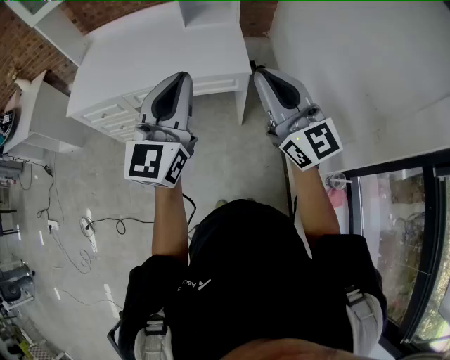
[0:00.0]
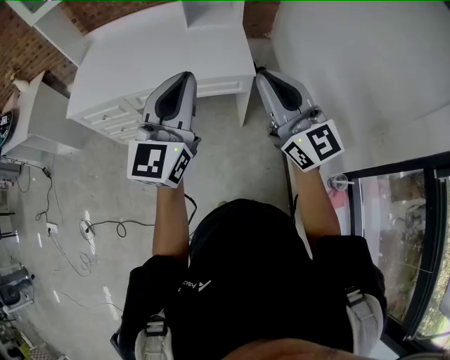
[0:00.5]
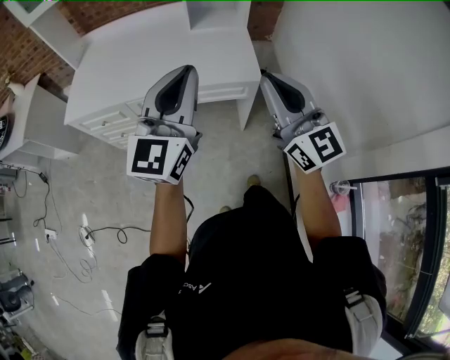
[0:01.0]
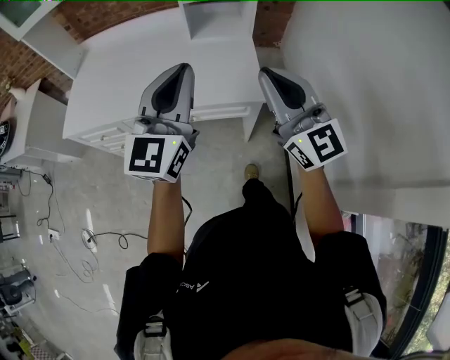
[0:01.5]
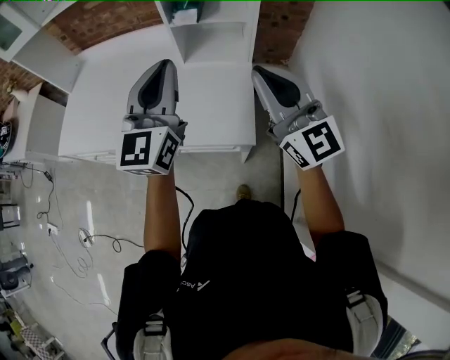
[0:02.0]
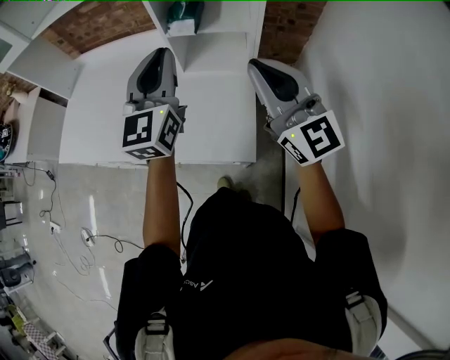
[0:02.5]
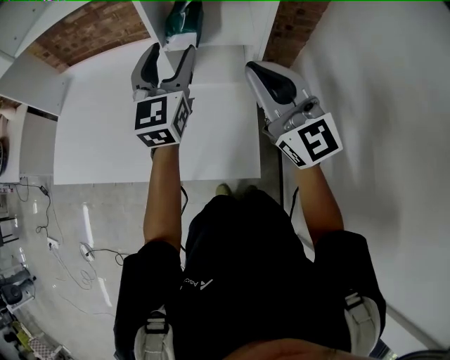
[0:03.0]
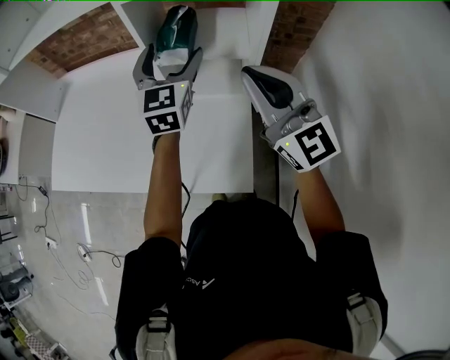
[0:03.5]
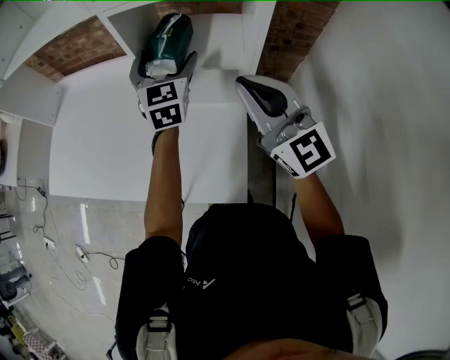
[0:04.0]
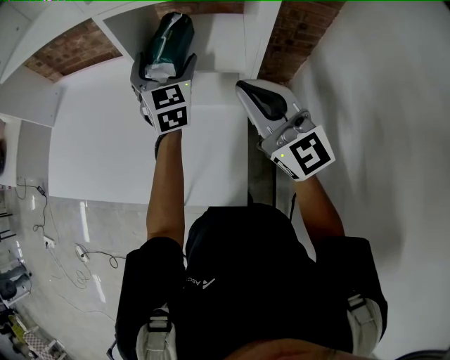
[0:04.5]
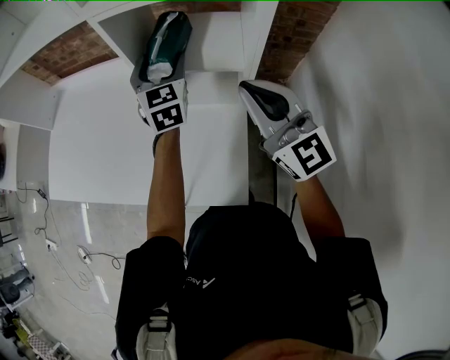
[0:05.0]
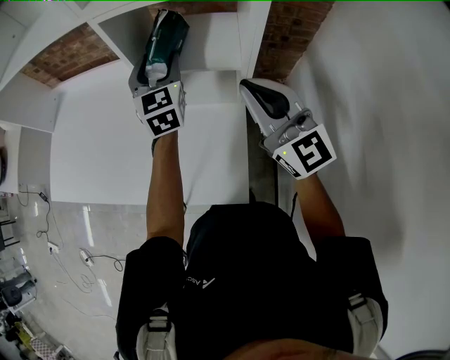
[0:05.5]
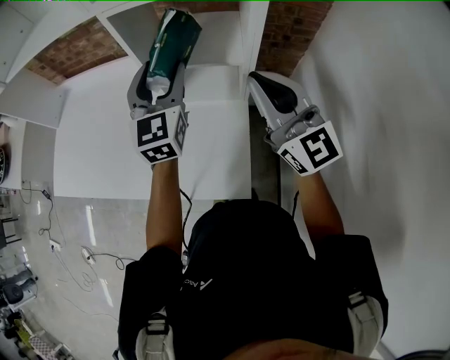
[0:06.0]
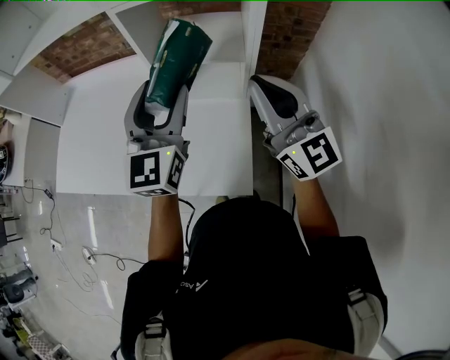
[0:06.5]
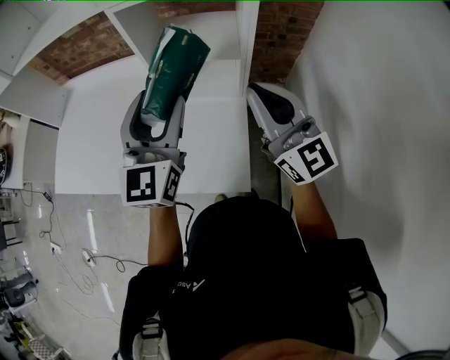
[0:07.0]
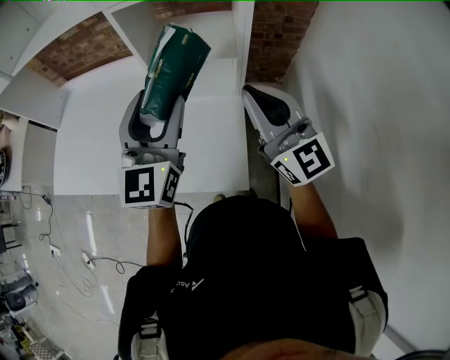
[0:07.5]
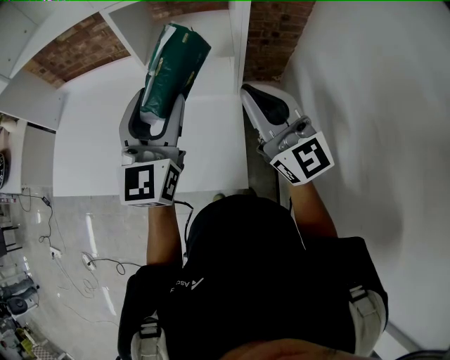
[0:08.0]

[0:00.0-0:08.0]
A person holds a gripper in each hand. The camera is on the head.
0:00.0 to 0:02.0: The grippers both shift forward by about 35 cm.
0:02.0 to 0:04.0: The right gripper goes about 20 cm forward; the left gripper is displaced forward by some 30 cm, changes its angle by some 30 degrees, and opens.
0:04.0 to 0:06.0: The left gripper goes roughly 5 cm backward, and closes.
0:06.0 to 0:08.0: The left gripper moves backward, approximately 15 cm; the right gripper shifts approximately 5 cm backward.

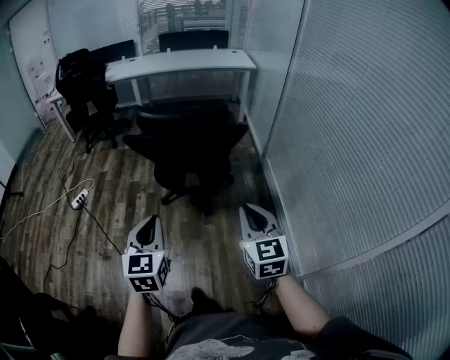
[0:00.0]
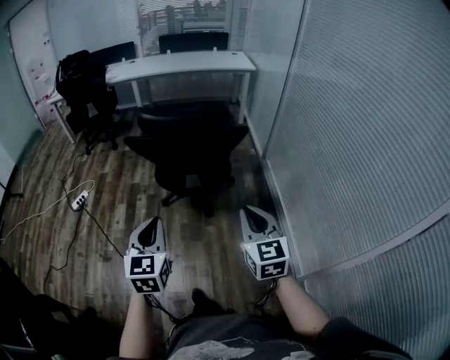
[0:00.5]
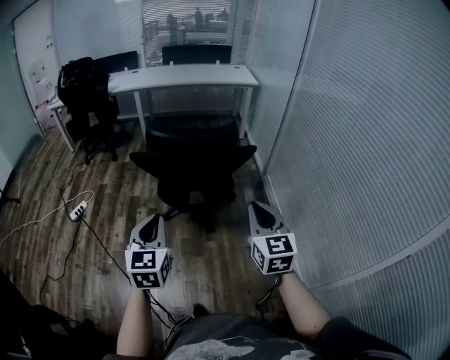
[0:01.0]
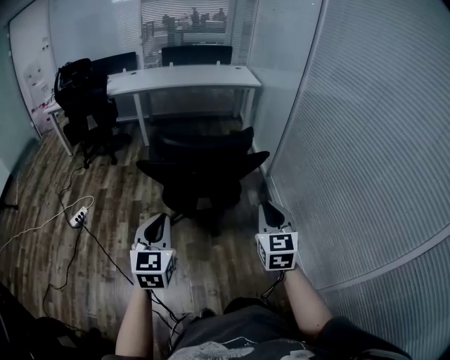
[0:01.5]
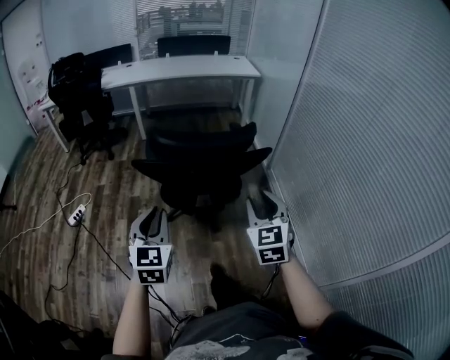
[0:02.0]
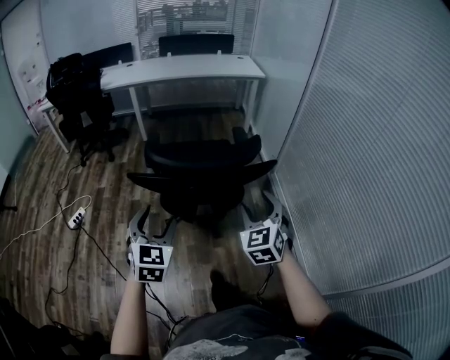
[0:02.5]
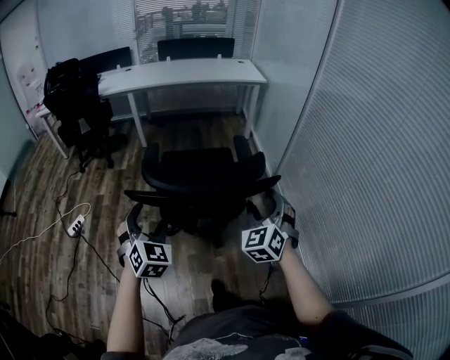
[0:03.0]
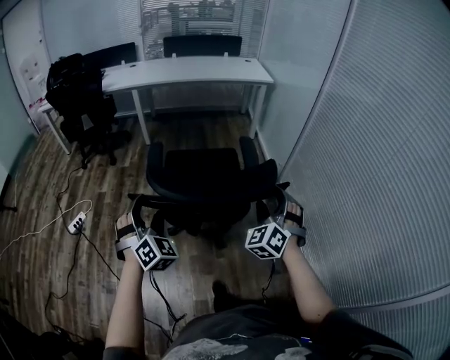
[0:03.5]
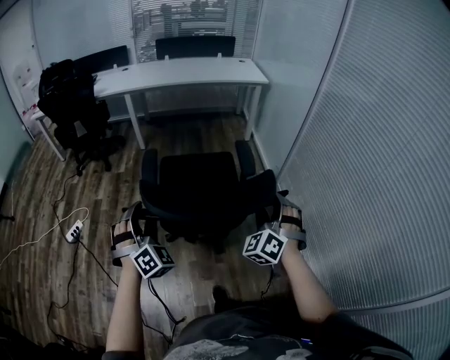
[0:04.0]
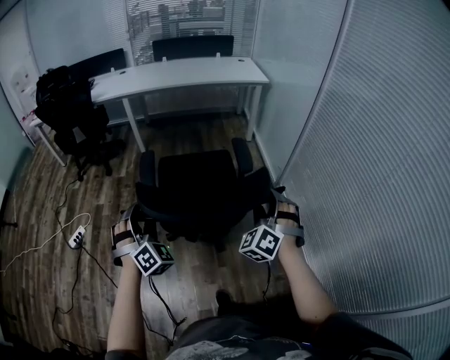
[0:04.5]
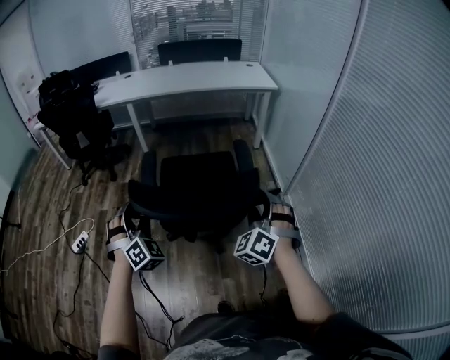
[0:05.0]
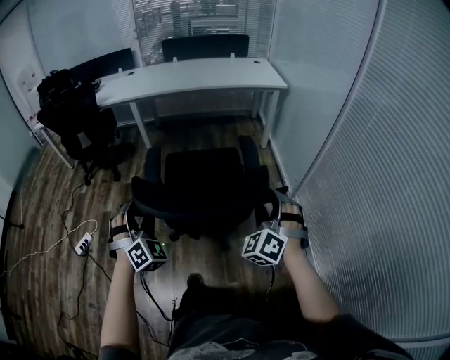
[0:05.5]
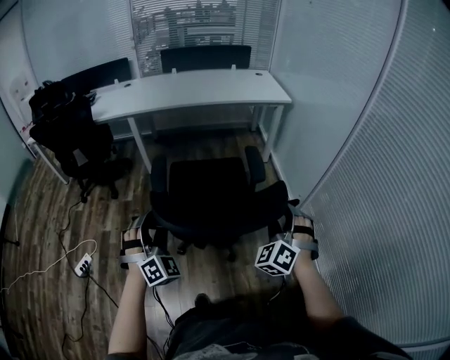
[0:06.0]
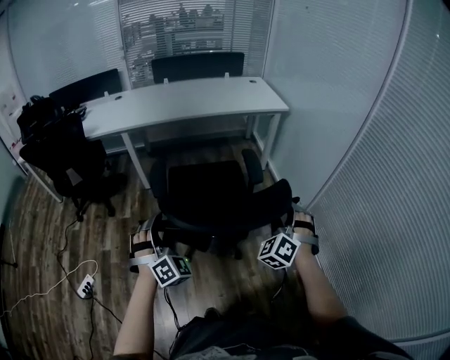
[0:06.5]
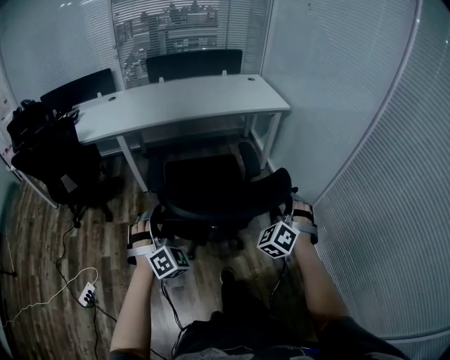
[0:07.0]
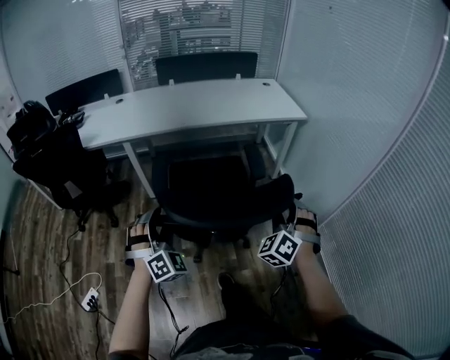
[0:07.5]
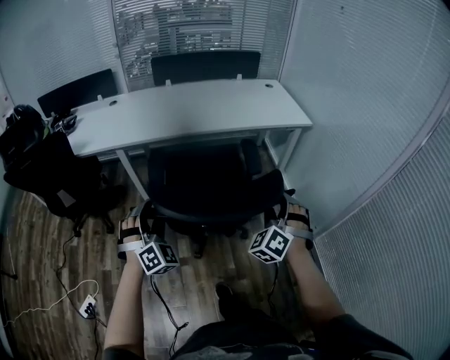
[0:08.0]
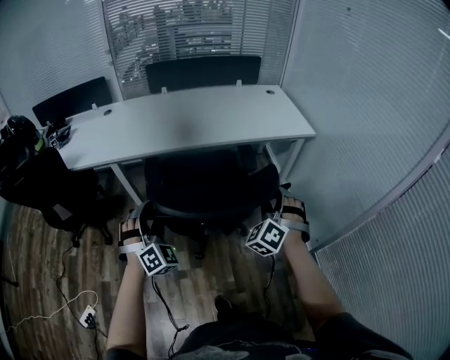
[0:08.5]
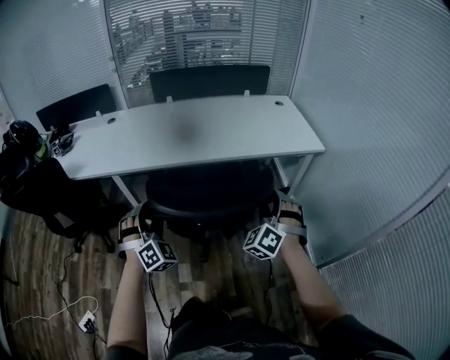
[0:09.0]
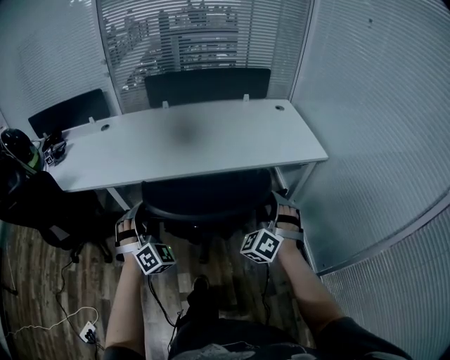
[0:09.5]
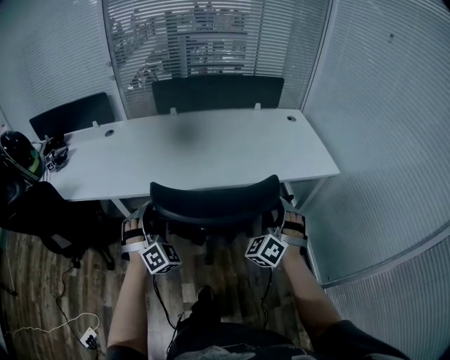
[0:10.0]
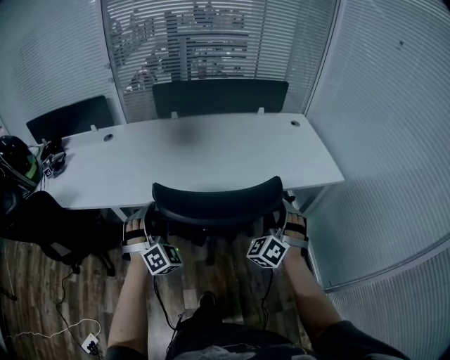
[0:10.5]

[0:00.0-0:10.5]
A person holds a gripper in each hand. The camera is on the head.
0:00.0 to 0:02.0: The left gripper shifts roughly 15 cm forward and to the left; the right gripper goes about 15 cm forward, and opens up.
0:02.0 to 0:04.0: The two grippers go about 20 cm forward. The right gripper twists approximately 40 degrees counterclockwise, seen from behind, and opens up; the left gripper twists some 50 degrees clockwise, seen from behind, and opens up.
0:04.0 to 0:06.5: The grippers both shift forward by about 35 cm.
0:06.5 to 0:08.5: The two grippers go approximately 40 cm forward.
0:08.5 to 0:10.5: The grippers both shift forward by some 25 cm.

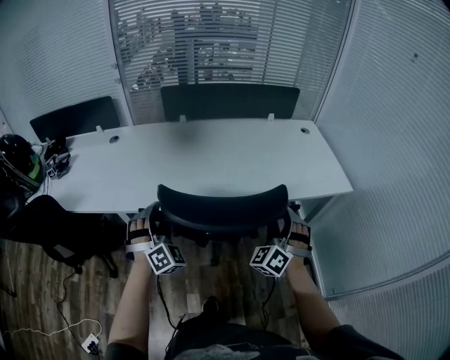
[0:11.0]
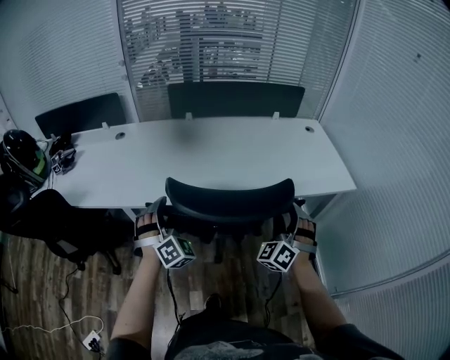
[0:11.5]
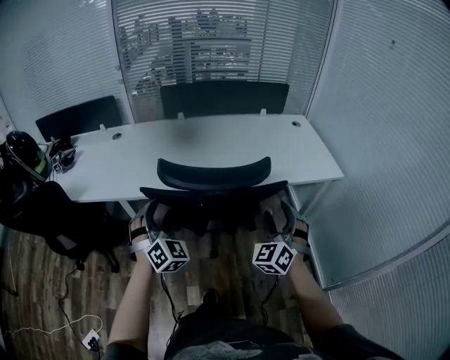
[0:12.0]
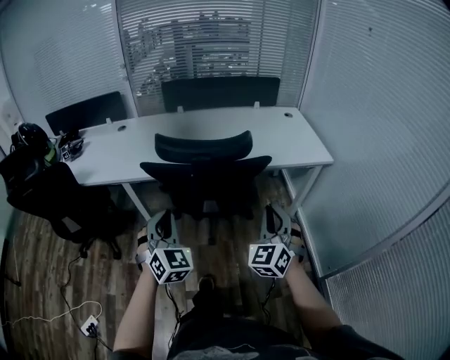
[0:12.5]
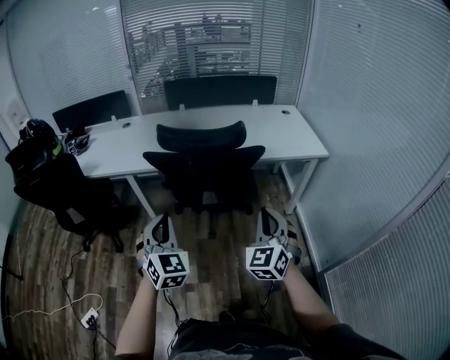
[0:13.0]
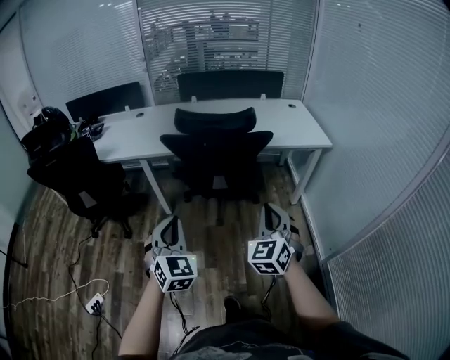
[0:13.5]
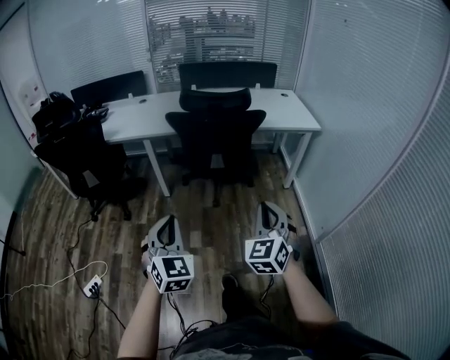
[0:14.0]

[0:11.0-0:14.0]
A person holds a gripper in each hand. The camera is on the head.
0:11.0 to 0:12.5: The two grippers go approximately 25 cm backward. The left gripper swivels roughly 30 degrees, and closes, while the right gripper rotates roughly 30 degrees, and closes.
0:12.5 to 0:14.0: The two grippers go approximately 35 cm backward.

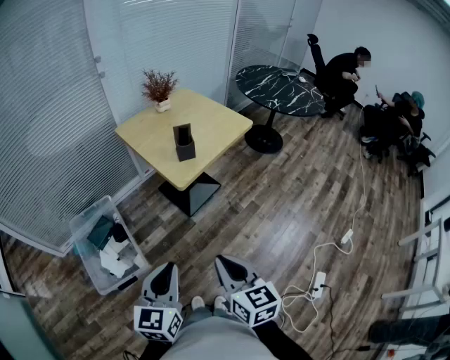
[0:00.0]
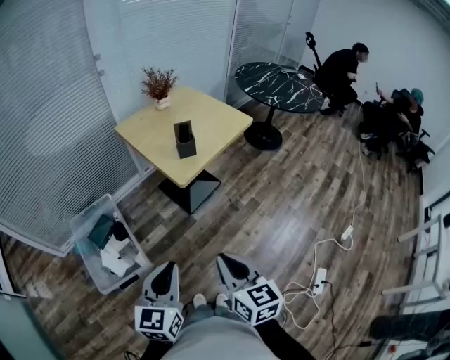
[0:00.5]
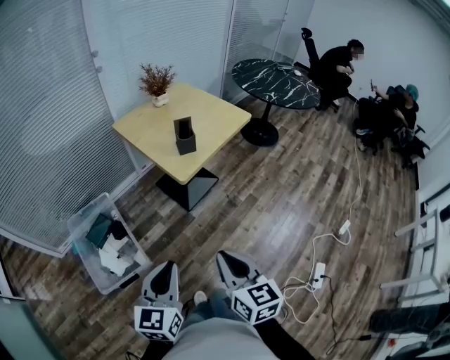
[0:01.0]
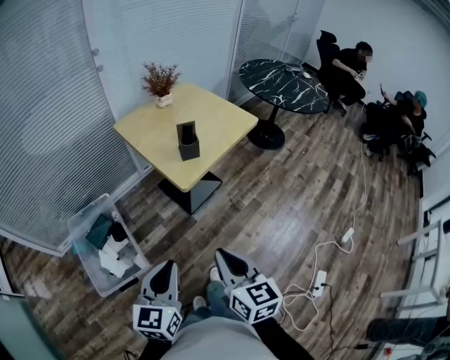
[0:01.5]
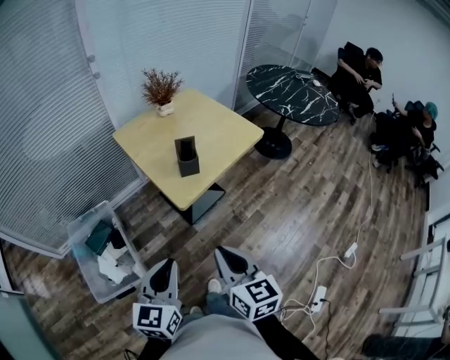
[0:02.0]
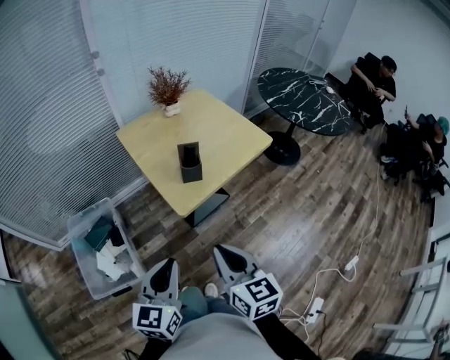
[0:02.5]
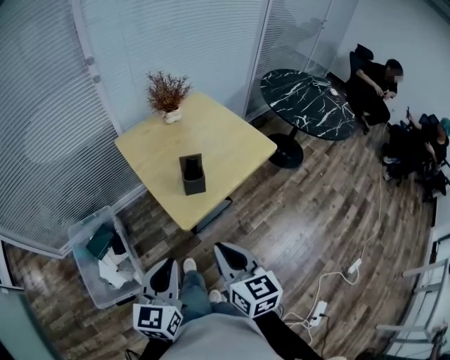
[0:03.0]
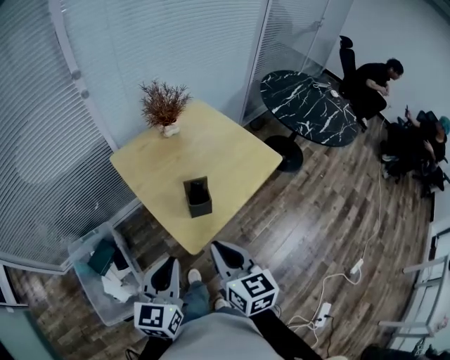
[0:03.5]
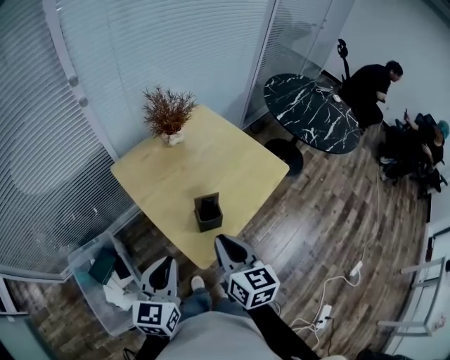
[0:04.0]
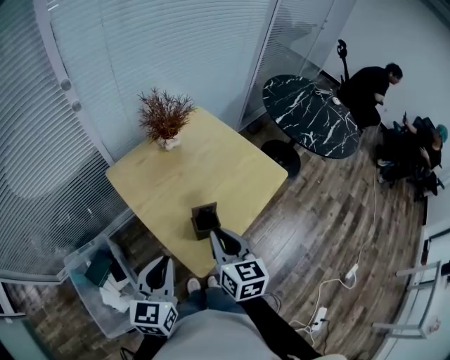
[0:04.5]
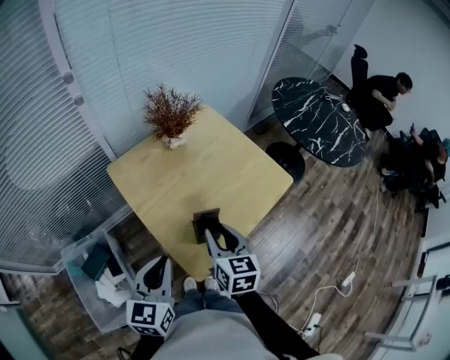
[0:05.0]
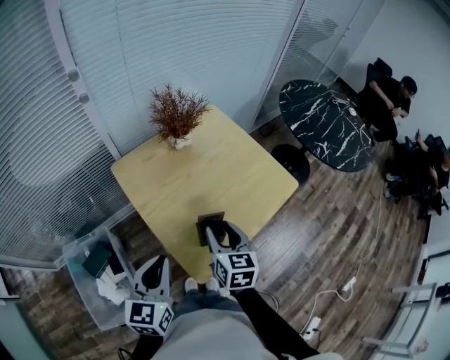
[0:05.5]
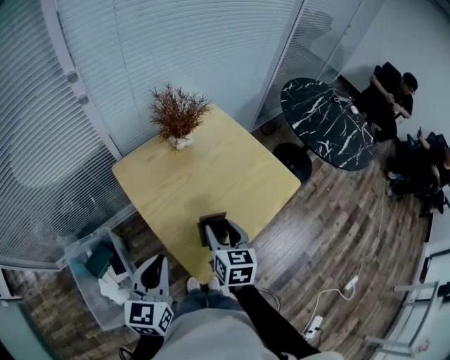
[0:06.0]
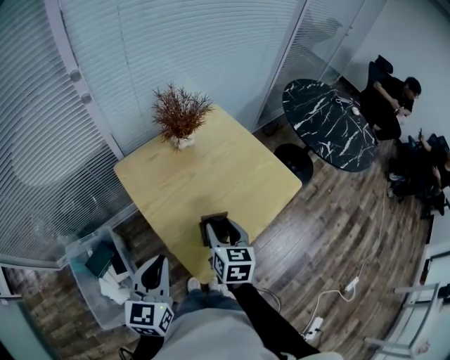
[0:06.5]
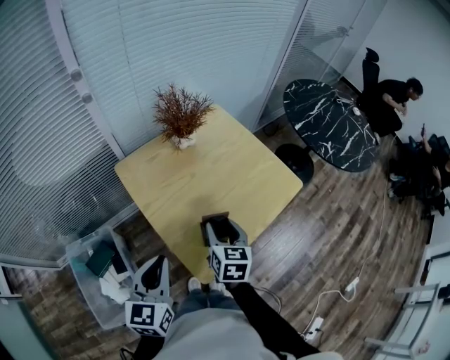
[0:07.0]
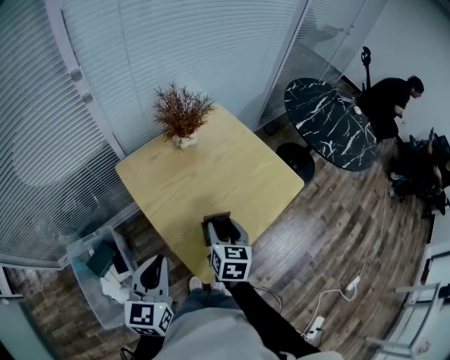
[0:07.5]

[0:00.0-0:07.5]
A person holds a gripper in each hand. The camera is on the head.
0:00.0 to 0:02.0: The two grippers go some 15 cm forward.
0:02.0 to 0:04.0: Both grippers travel together forward, roughly 30 cm.
0:04.0 to 0:05.5: The left gripper moves forward, about 5 cm, while the right gripper travels forward and downward by some 15 cm, and opens.
0:05.5 to 0:07.5: There are only small adjustments of the grippers.
